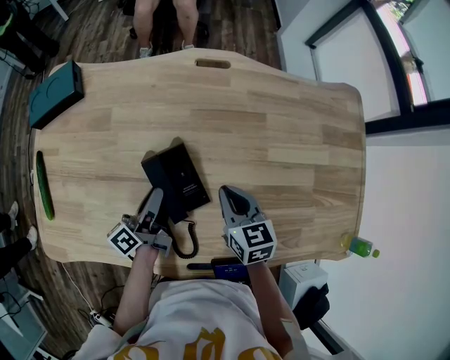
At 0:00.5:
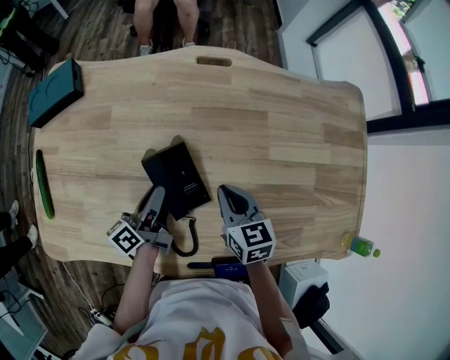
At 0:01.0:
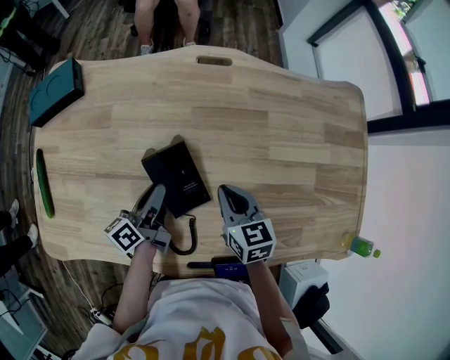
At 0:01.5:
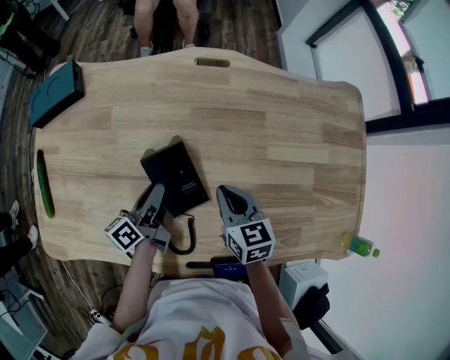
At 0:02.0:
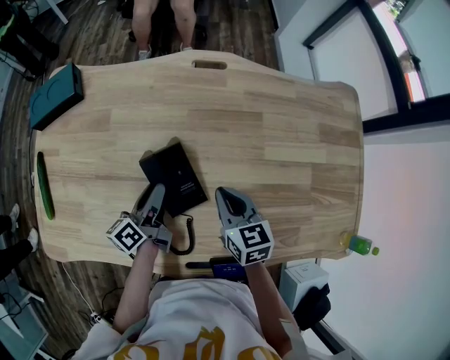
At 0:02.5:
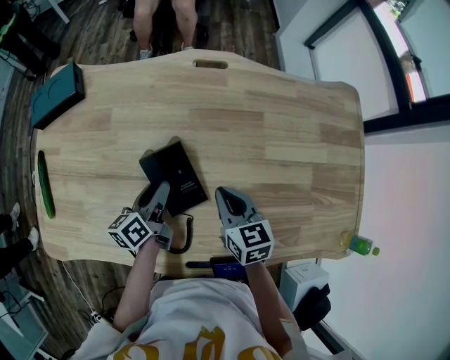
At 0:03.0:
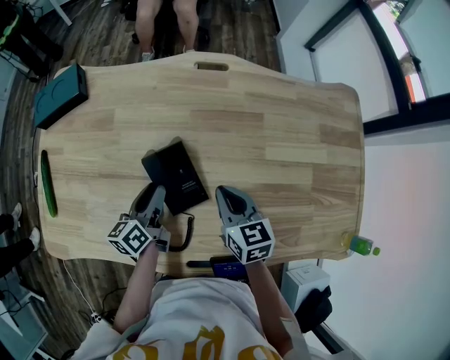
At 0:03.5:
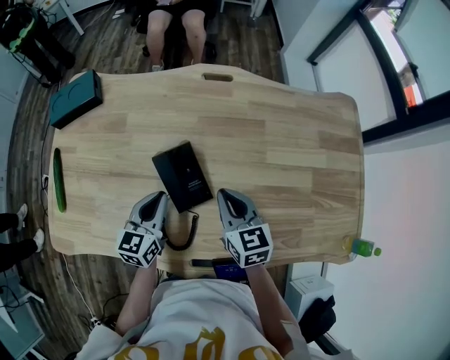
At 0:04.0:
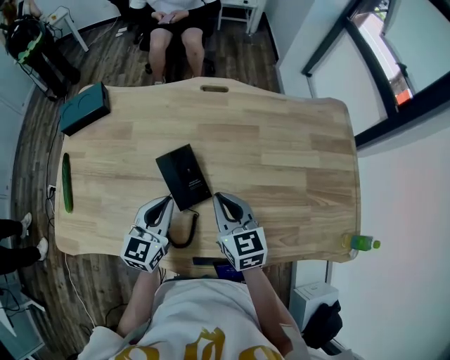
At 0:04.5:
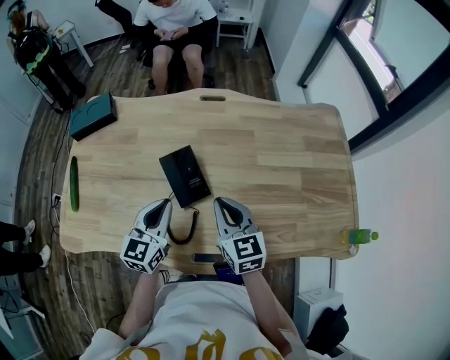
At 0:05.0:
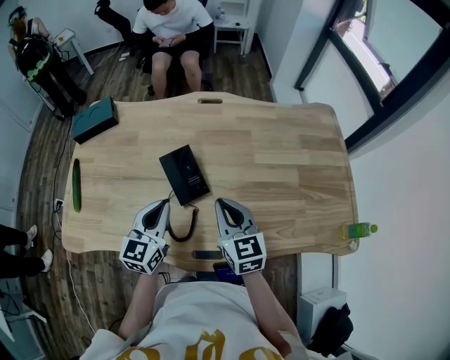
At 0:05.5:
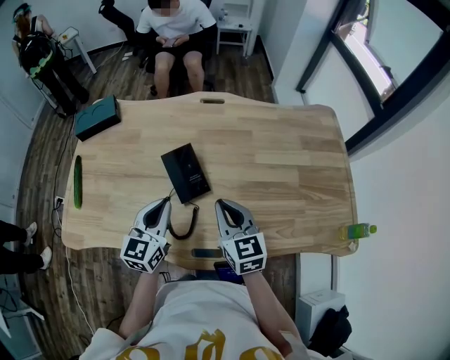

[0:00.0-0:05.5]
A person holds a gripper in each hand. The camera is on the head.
0:00.0 to 0:02.0: The grippers stay close to where they were, moving slightly.
0:02.0 to 0:03.5: The left gripper ends up roughly 5 cm from where it was, rolls clockwise, seen from behind, by roughly 50 degrees, and closes its fingers.
0:03.5 to 0:05.5: The right gripper heads backward and upward, covering some 10 cm. The left gripper travels upward and backward by approximately 10 cm.

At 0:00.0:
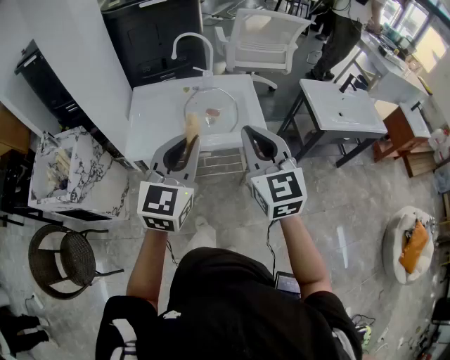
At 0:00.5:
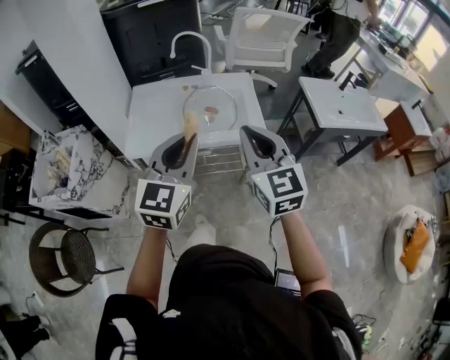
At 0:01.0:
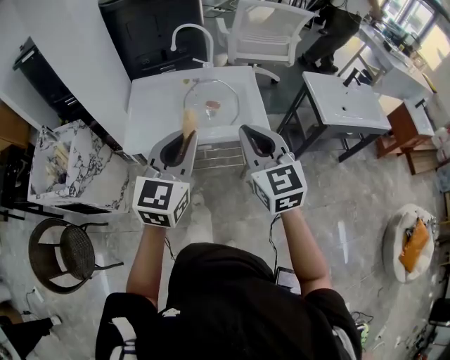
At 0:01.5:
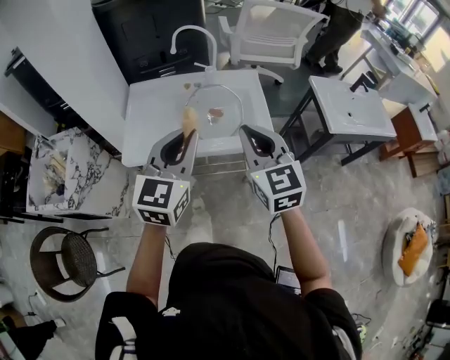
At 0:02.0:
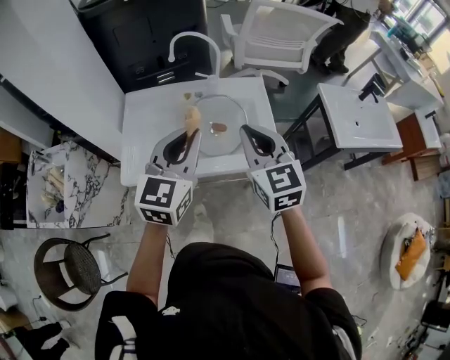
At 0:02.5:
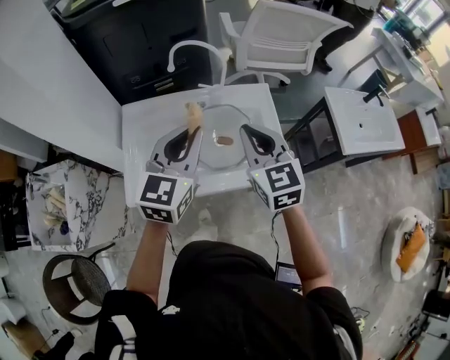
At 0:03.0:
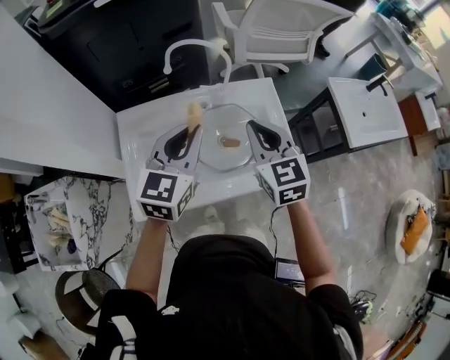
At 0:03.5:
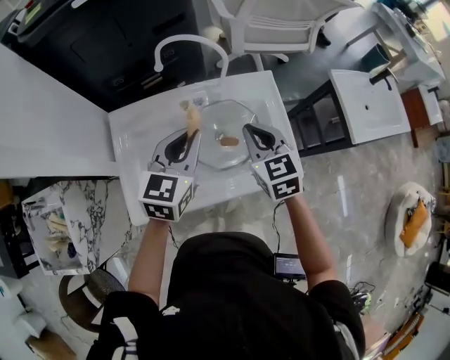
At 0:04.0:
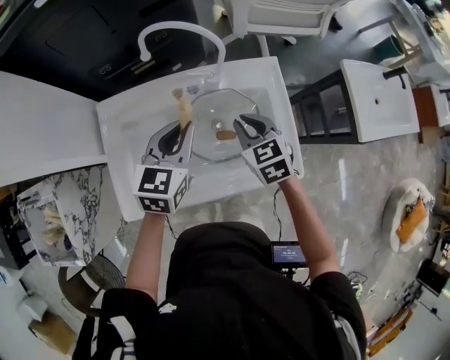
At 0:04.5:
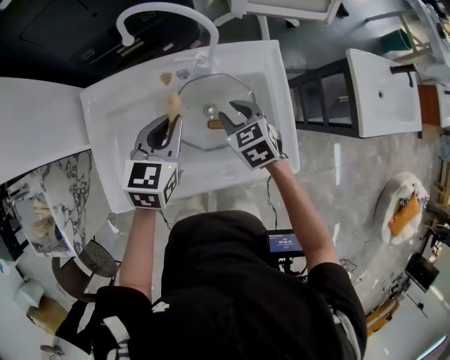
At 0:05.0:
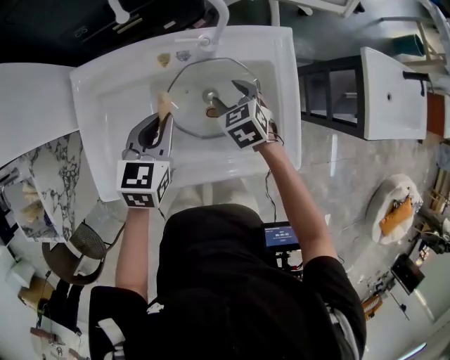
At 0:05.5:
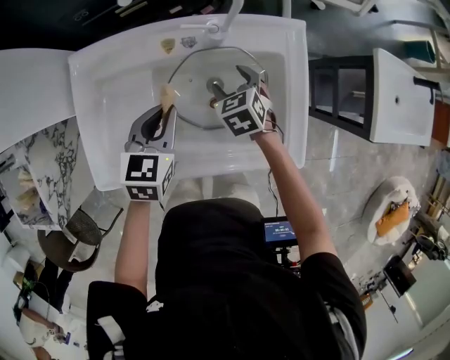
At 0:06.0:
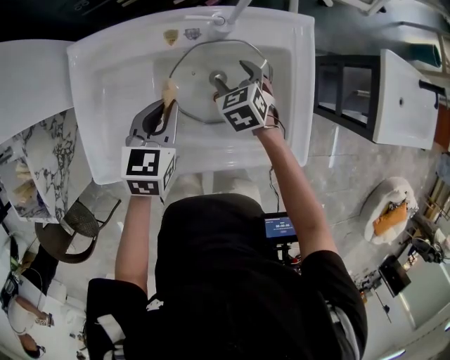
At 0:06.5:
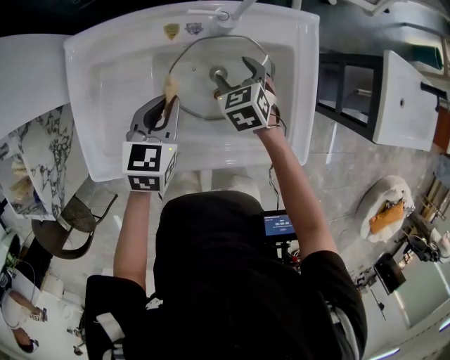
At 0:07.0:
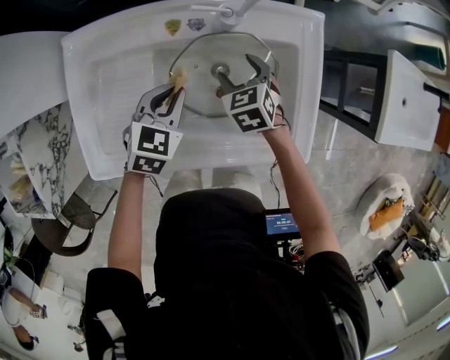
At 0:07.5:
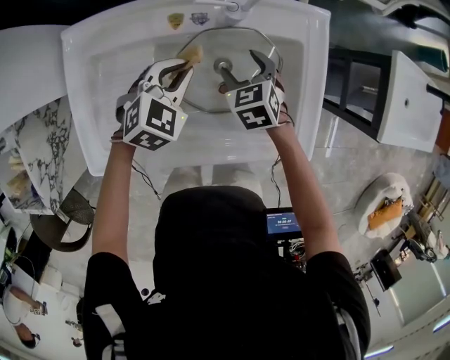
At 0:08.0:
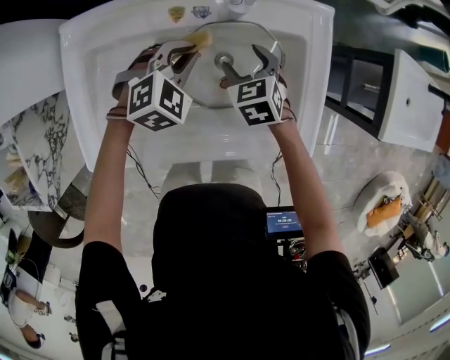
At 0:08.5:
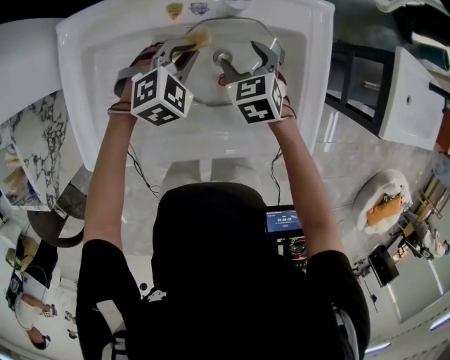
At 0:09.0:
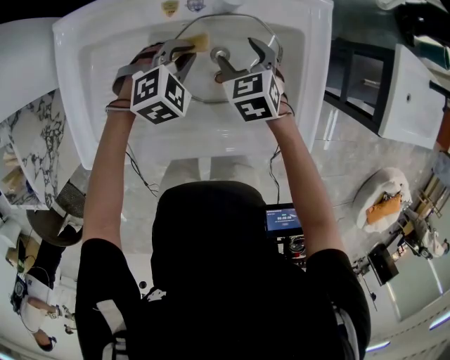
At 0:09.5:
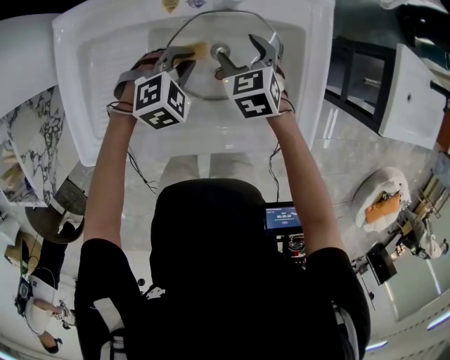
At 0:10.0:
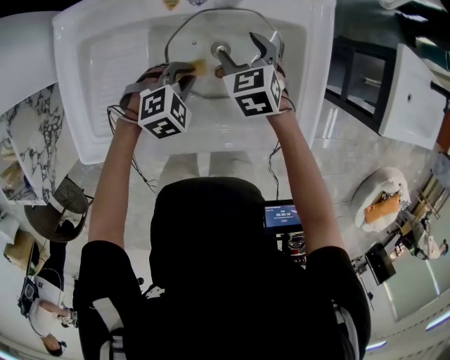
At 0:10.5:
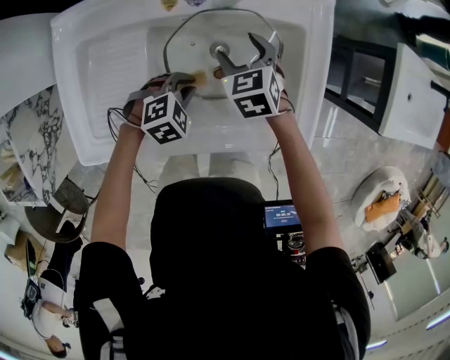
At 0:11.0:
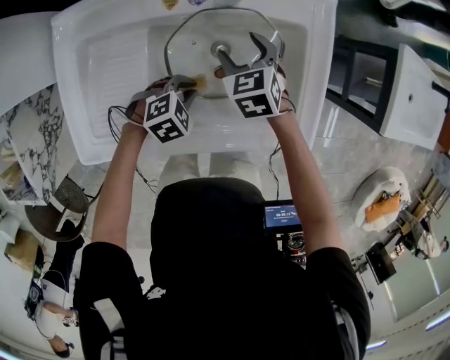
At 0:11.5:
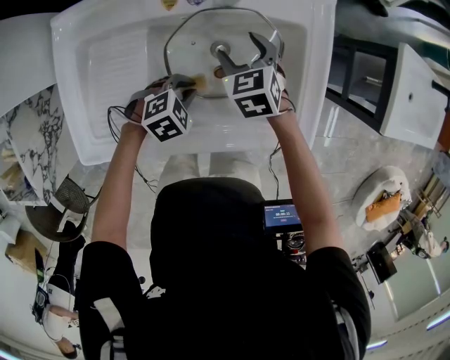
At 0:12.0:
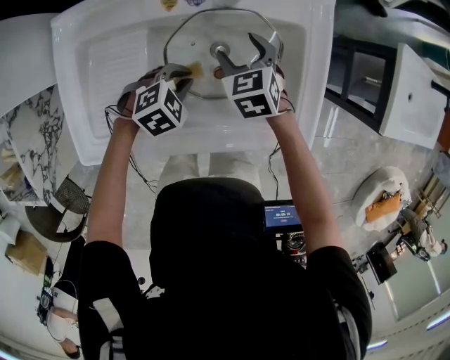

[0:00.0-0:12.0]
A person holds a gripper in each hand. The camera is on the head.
0:00.0 to 0:02.0: The grippers both shift forward by about 20 cm.
0:02.0 to 0:04.0: Both grippers move forward and downward, some 30 cm. The left gripper rotates about 20 degrees; the right gripper turns by some 30 degrees.
0:04.0 to 0:06.0: Both grippers travel together downward, approximately 15 cm. The right gripper opens its fingers.
0:06.0 to 0:08.0: The left gripper shifts some 10 cm forward and downward, and rotates around the line of its fingers by approximately 50 degrees, clockwise from behind.
0:08.0 to 0:10.0: The left gripper travels backward and downward by approximately 10 cm.
0:10.0 to 0:12.0: The grippers stay close to where they were, moving slightly.

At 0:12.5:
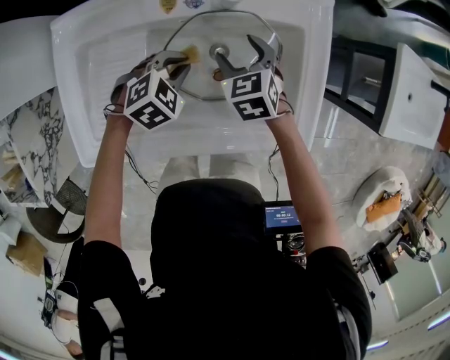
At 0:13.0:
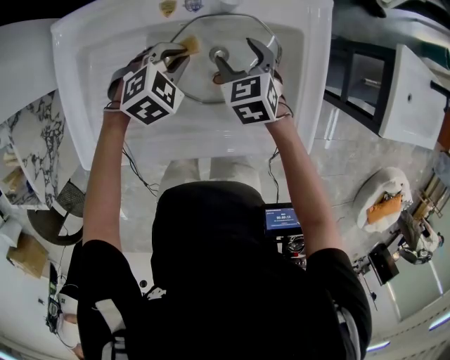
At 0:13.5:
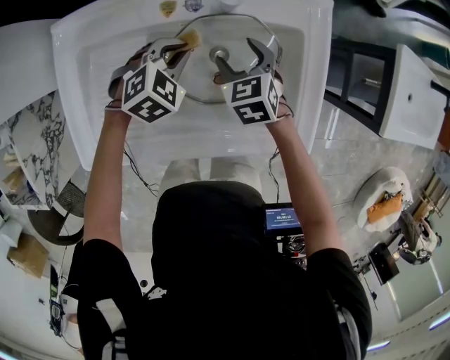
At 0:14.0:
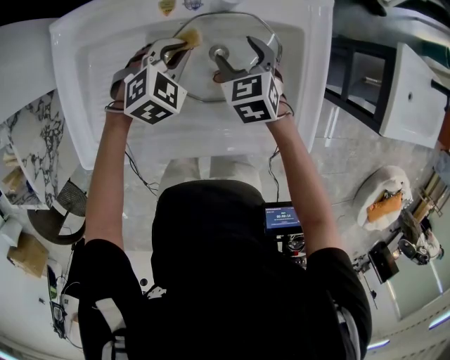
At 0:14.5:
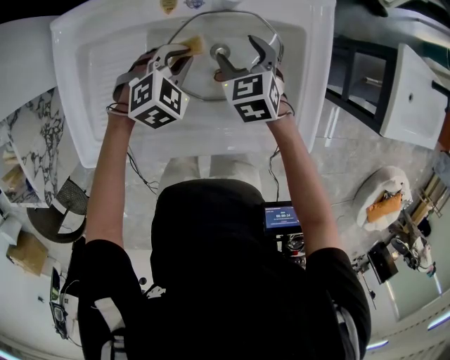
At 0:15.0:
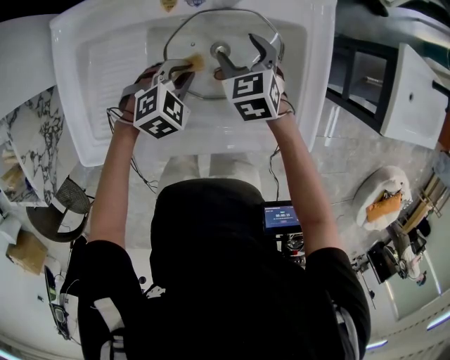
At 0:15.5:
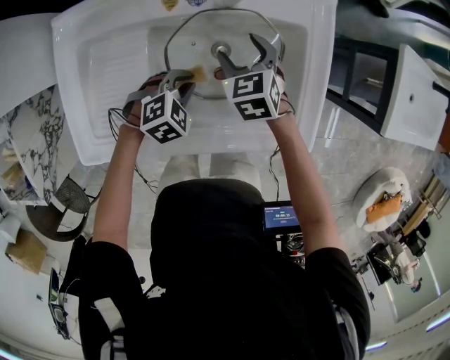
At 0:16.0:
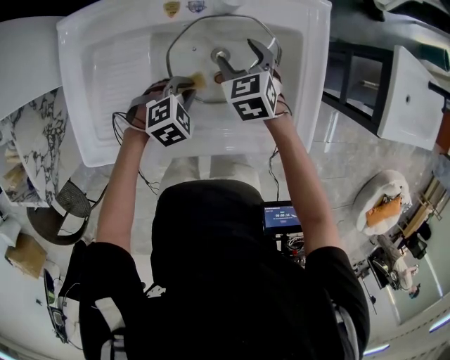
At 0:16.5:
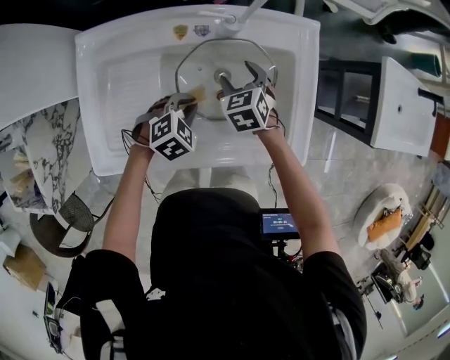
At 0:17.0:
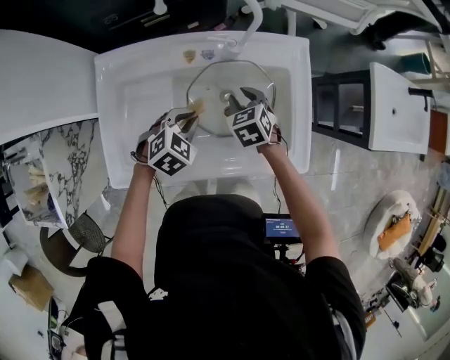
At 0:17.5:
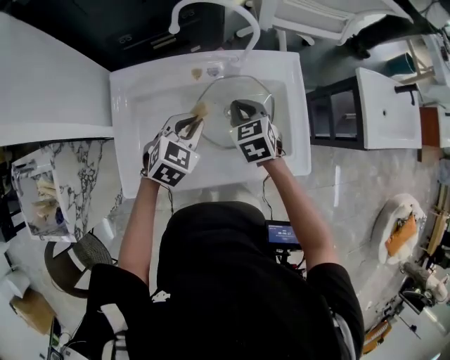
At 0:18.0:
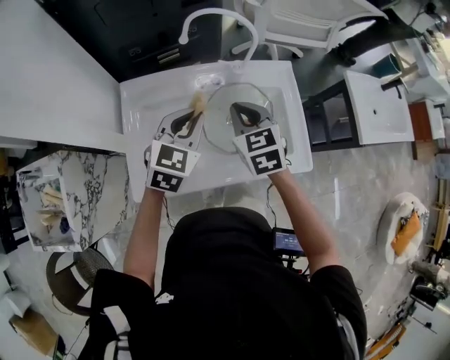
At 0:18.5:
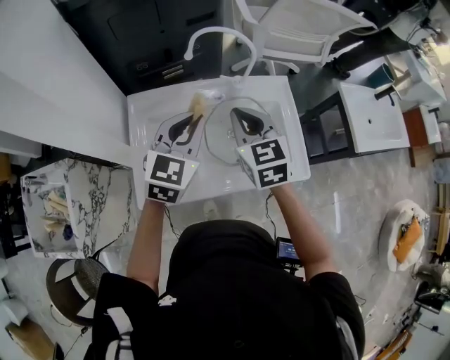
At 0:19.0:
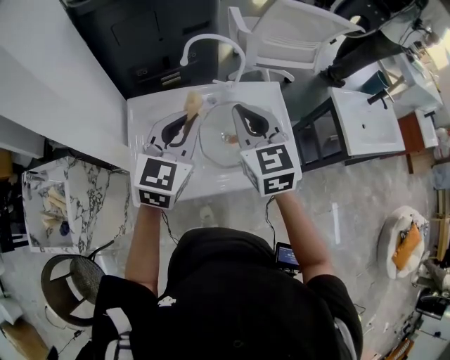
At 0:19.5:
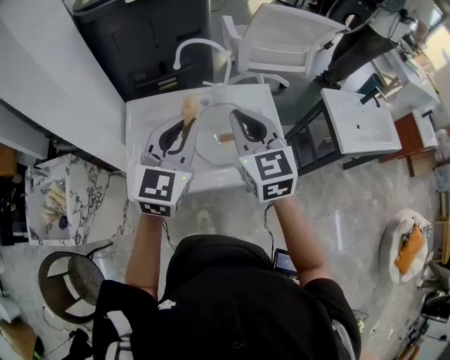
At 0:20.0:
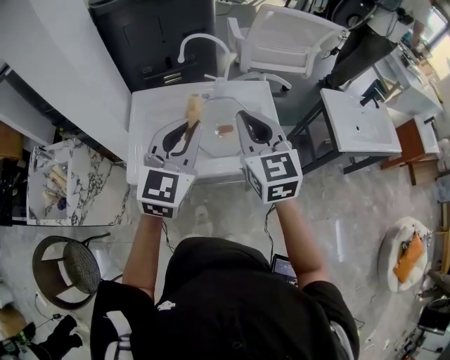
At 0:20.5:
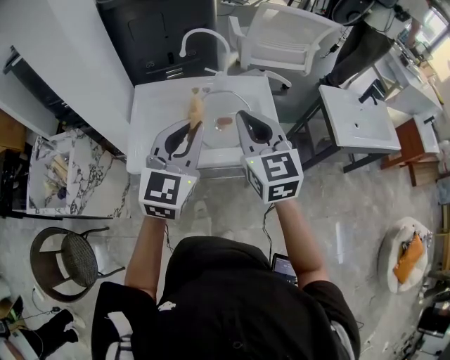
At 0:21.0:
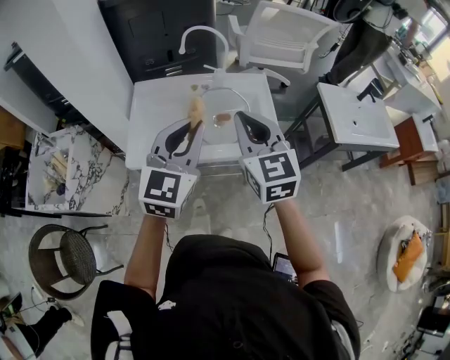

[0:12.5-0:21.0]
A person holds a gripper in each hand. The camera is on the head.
0:12.5 to 0:14.5: The grippers move only a little.
0:14.5 to 0:16.5: The left gripper heads backward, covering approximately 10 cm.
0:16.5 to 0:19.0: The two grippers go roughly 40 cm upward. The right gripper tilts its fingers roughly 40 degrees upward, and closes its fingers, while the left gripper tips its fingers upward by some 50 degrees.
0:19.0 to 0:21.0: Both grippers move backward, roughly 20 cm.

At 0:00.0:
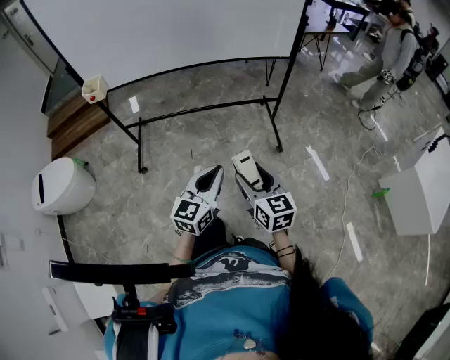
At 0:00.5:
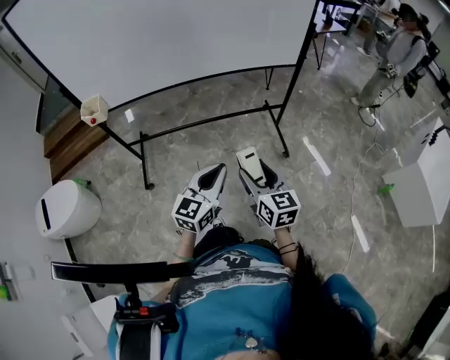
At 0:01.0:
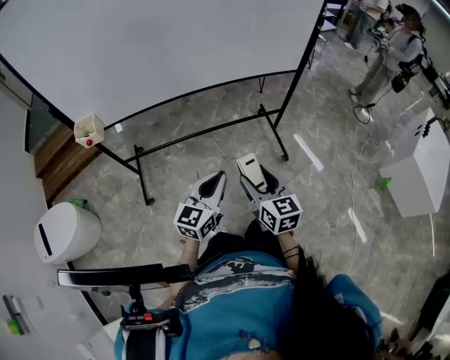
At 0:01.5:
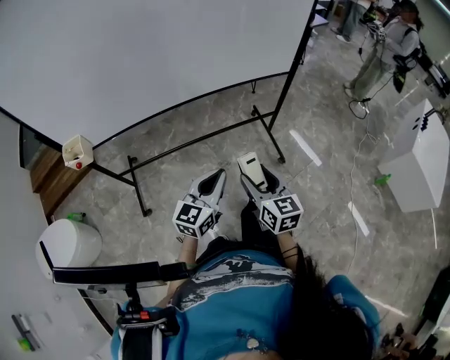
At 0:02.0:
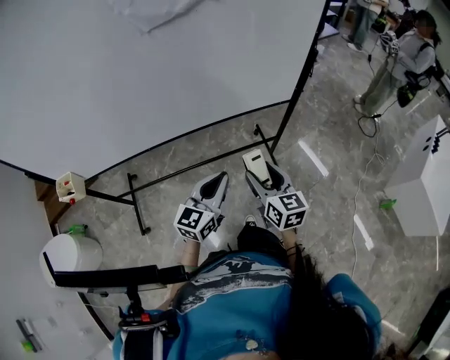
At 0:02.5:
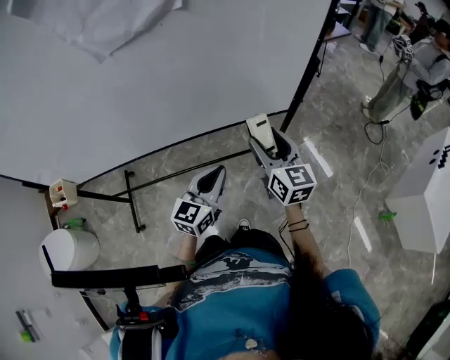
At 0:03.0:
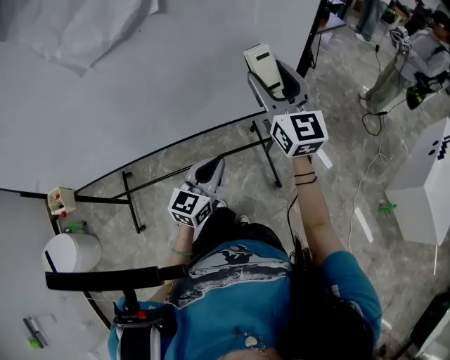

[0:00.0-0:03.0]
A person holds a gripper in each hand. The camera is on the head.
0:00.0 to 0:01.5: Both grippers travel together forward and to the left, some 25 cm.
0:01.5 to 0:03.0: The right gripper is displaced forward and upward by approximately 50 cm, and swivels some 30 degrees. The left gripper goes some 35 cm forward and to the right.
